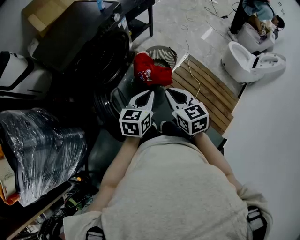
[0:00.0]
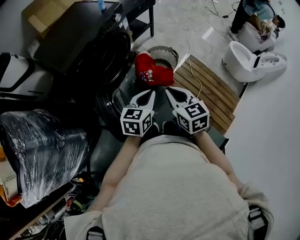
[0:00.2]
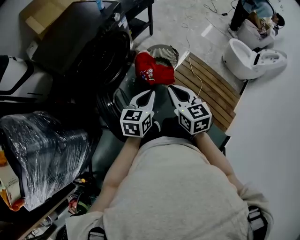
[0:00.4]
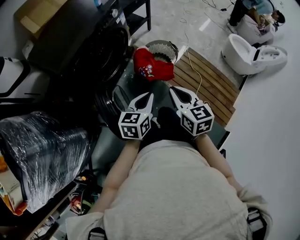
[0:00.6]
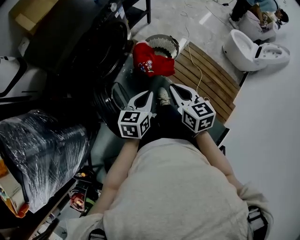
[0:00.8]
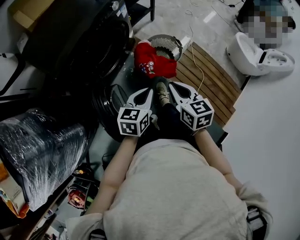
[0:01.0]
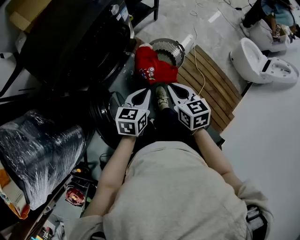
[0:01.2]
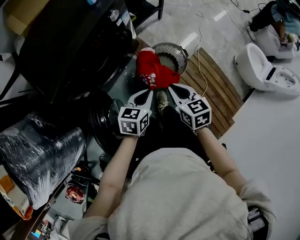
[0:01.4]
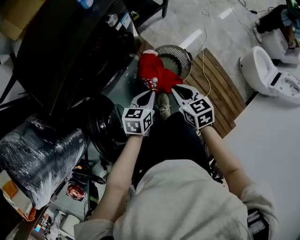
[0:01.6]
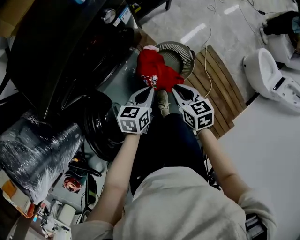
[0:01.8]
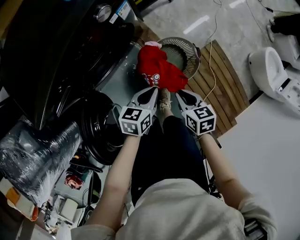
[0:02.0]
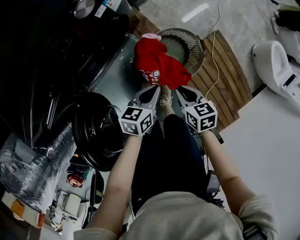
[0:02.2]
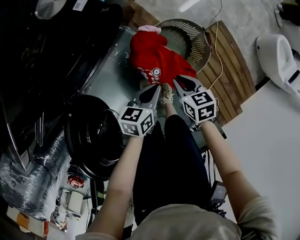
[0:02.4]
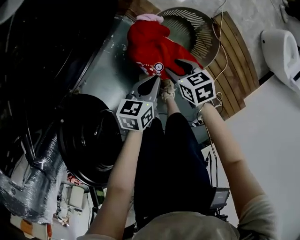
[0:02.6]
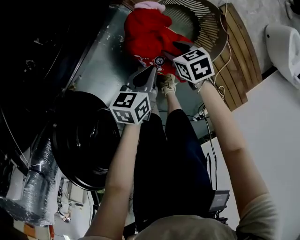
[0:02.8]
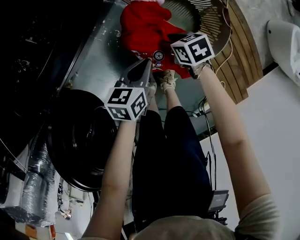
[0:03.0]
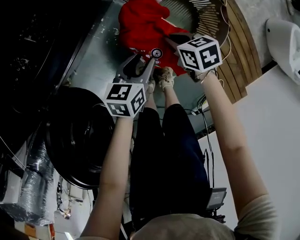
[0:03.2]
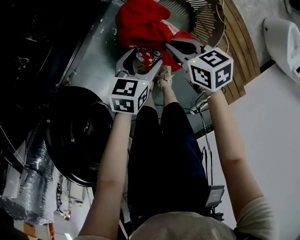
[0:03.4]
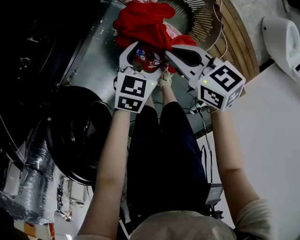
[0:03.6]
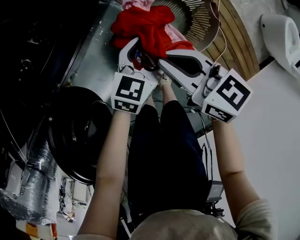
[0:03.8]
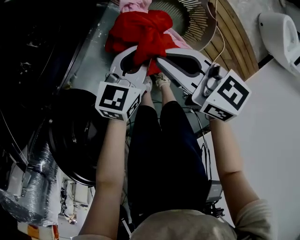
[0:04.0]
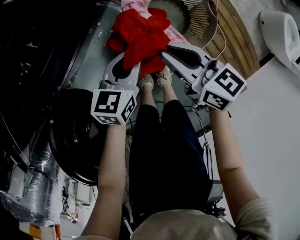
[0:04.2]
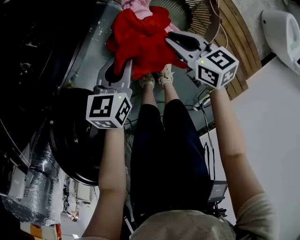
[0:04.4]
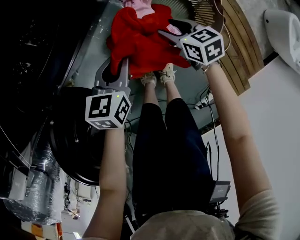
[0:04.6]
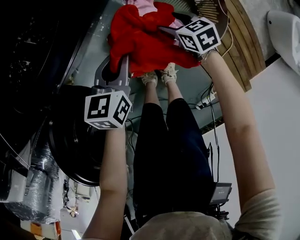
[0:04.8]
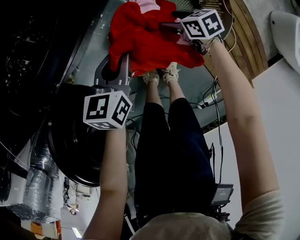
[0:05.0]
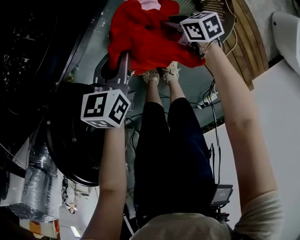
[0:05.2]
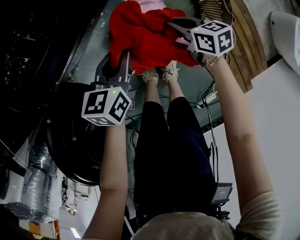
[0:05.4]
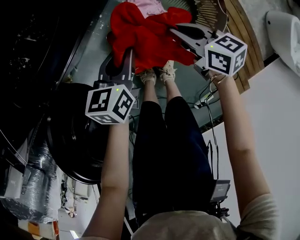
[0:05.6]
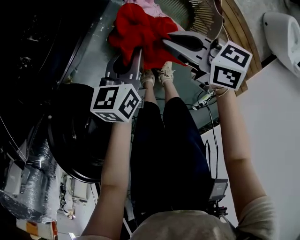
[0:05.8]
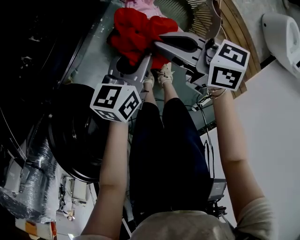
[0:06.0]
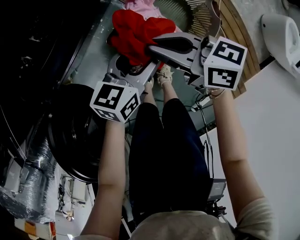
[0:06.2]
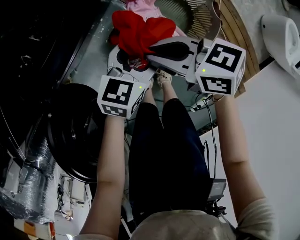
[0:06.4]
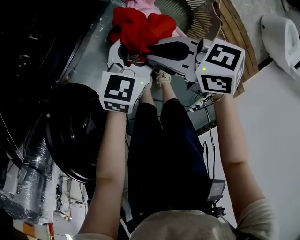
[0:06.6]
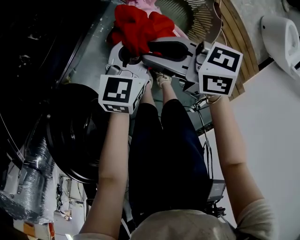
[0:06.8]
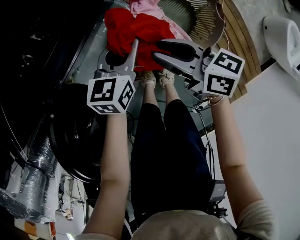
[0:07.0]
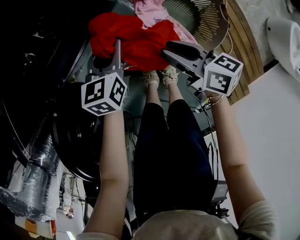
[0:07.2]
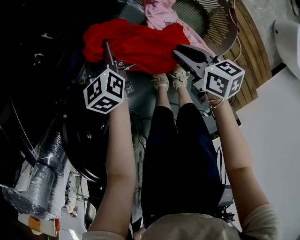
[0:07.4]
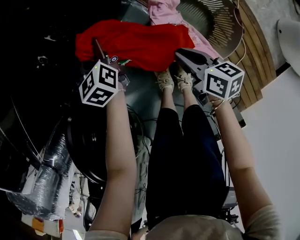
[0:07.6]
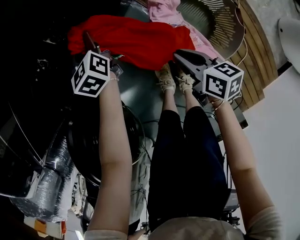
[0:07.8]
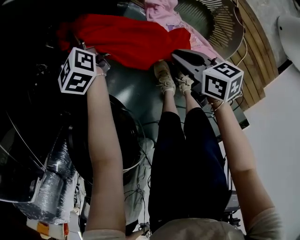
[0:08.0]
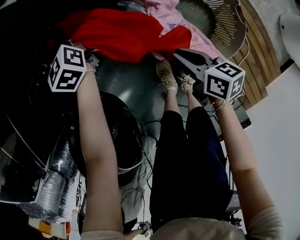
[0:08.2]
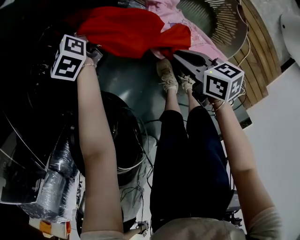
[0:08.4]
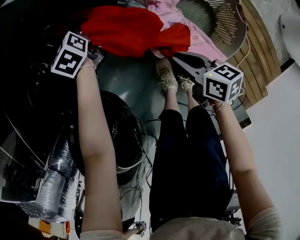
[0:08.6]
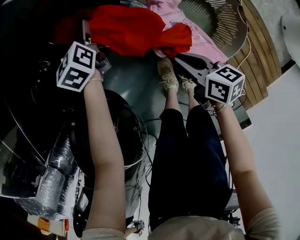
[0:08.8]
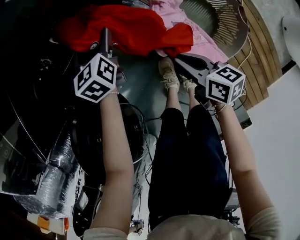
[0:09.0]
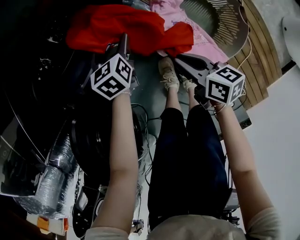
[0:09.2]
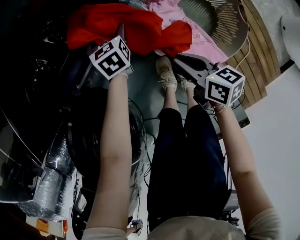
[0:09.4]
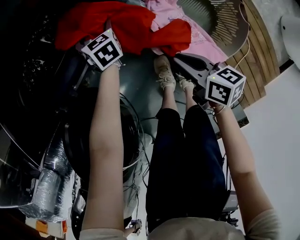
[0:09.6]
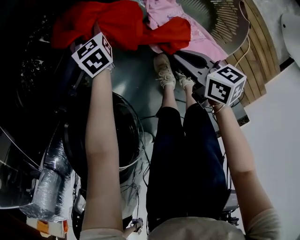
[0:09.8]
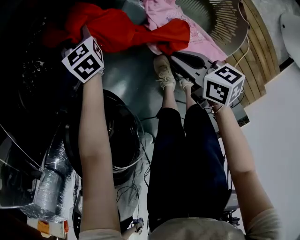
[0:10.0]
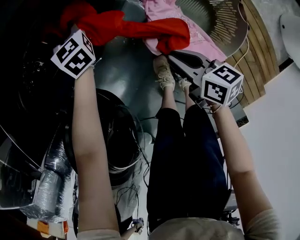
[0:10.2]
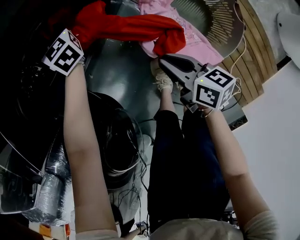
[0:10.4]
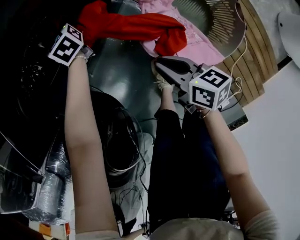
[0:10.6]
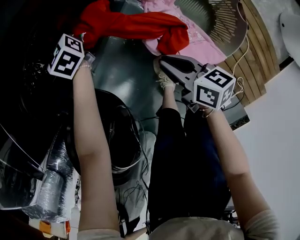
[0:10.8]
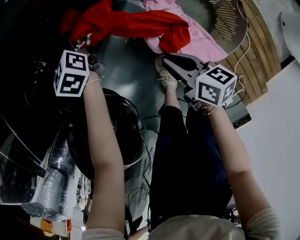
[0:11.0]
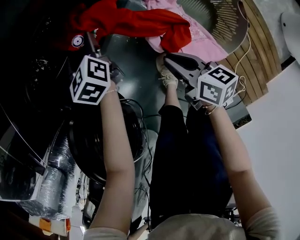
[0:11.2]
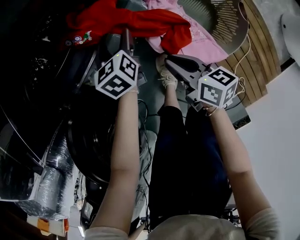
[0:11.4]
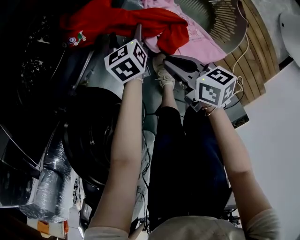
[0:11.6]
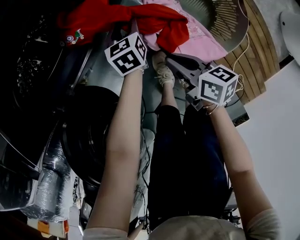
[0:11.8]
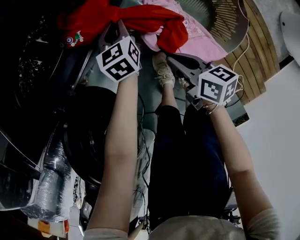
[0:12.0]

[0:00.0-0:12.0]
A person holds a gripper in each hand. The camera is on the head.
0:00.0 to 0:01.6: The grippers both shift forward and downward by roughly 30 cm. The left gripper turns by roughly 20 degrees. Meanwhile the right gripper swivels about 20 degrees.
0:01.6 to 0:03.0: Both grippers move downward, about 40 cm. The right gripper turns by roughly 30 degrees, and opens.
0:03.0 to 0:04.4: The right gripper moves upward, roughly 15 cm, swivels about 30 degrees, and closes, while the left gripper is displaced upward by some 10 cm, and opens, then closes once more.
0:04.4 to 0:06.0: The right gripper goes about 10 cm upward, rotates some 20 degrees, and opens, then closes once more.
0:06.0 to 0:07.6: The right gripper is displaced downward by roughly 10 cm, and swivels about 20 degrees; the left gripper moves approximately 25 cm, swivels some 50 degrees, and opens and closes again.
0:07.6 to 0:09.0: The left gripper travels forward and back again, roughly 15 cm each way, and opens up.
0:09.0 to 0:10.4: The left gripper goes approximately 15 cm forward, rotates about 30 degrees, and closes its fingers.
0:10.4 to 0:12.0: The left gripper moves backward, roughly 20 cm, turns by roughly 30 degrees, and opens, then closes once more.

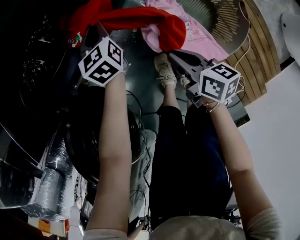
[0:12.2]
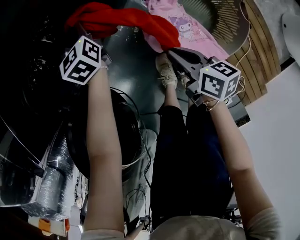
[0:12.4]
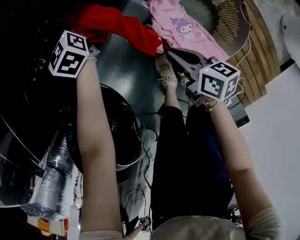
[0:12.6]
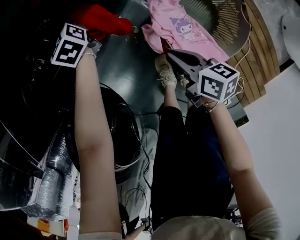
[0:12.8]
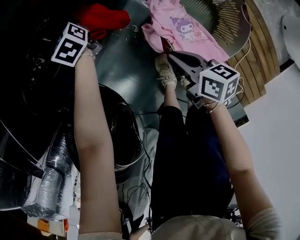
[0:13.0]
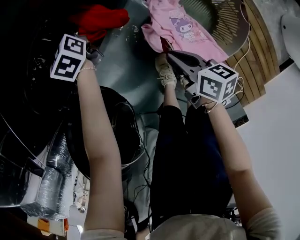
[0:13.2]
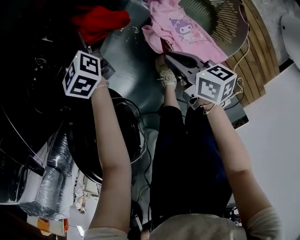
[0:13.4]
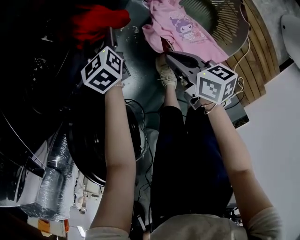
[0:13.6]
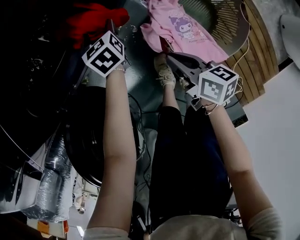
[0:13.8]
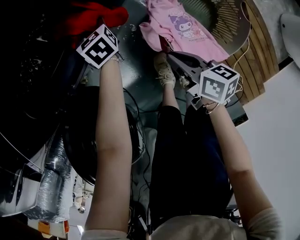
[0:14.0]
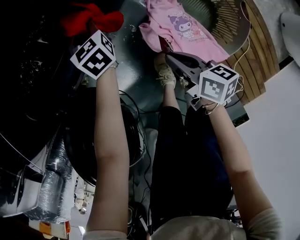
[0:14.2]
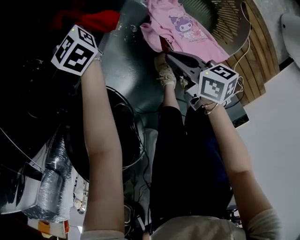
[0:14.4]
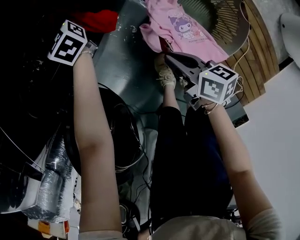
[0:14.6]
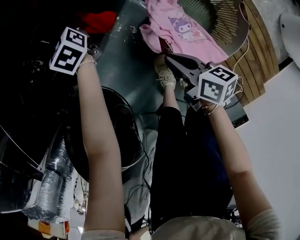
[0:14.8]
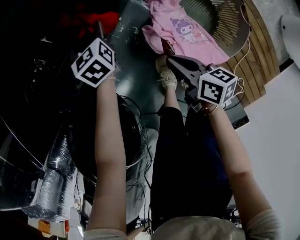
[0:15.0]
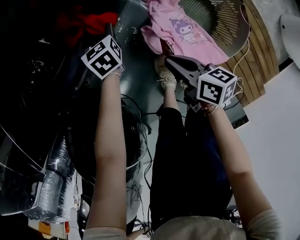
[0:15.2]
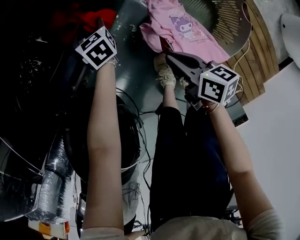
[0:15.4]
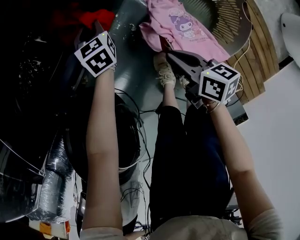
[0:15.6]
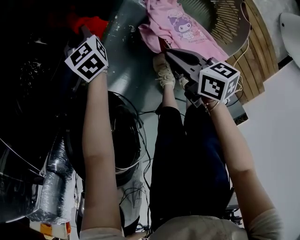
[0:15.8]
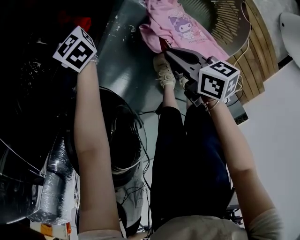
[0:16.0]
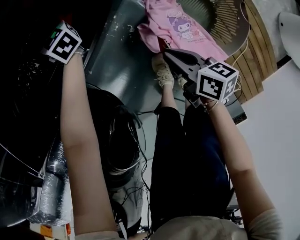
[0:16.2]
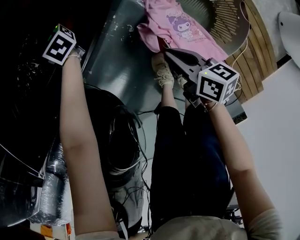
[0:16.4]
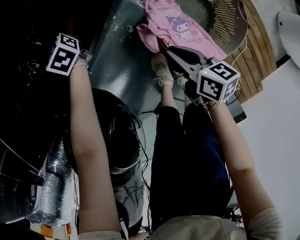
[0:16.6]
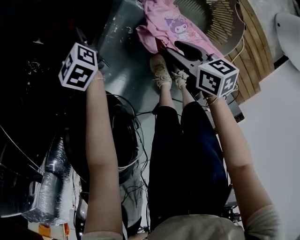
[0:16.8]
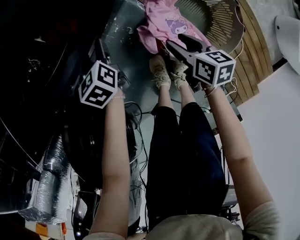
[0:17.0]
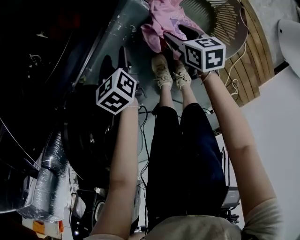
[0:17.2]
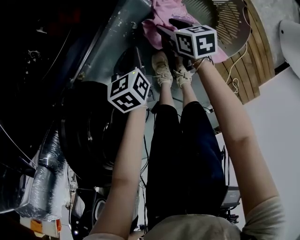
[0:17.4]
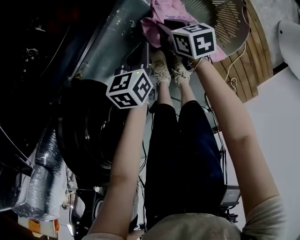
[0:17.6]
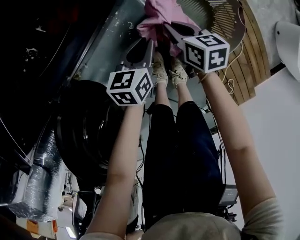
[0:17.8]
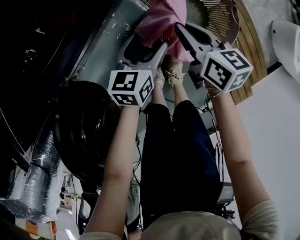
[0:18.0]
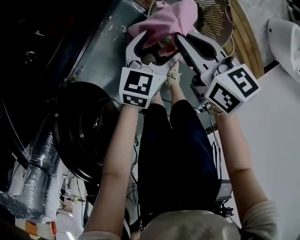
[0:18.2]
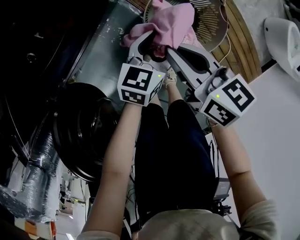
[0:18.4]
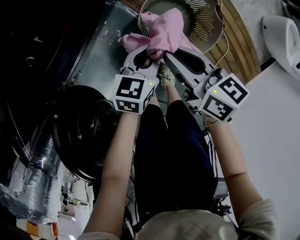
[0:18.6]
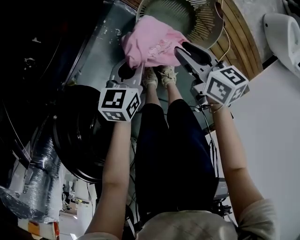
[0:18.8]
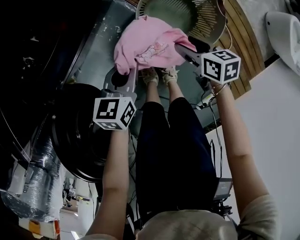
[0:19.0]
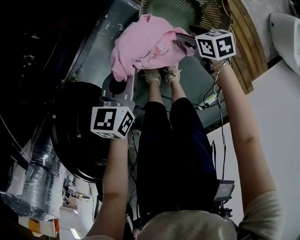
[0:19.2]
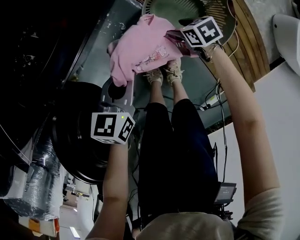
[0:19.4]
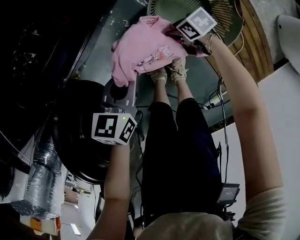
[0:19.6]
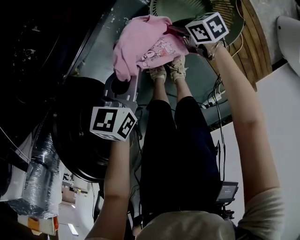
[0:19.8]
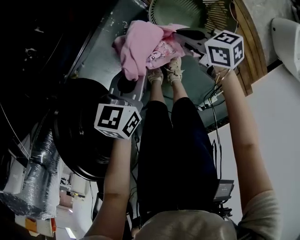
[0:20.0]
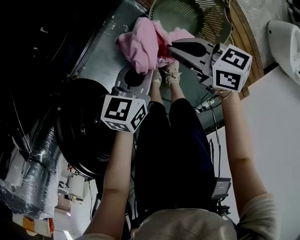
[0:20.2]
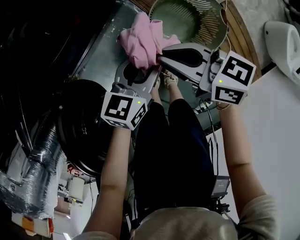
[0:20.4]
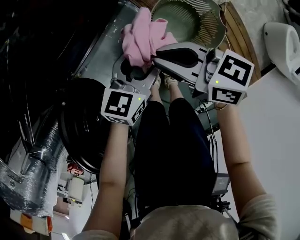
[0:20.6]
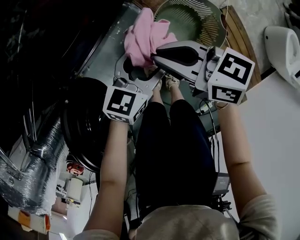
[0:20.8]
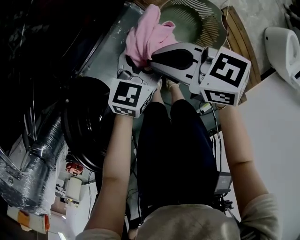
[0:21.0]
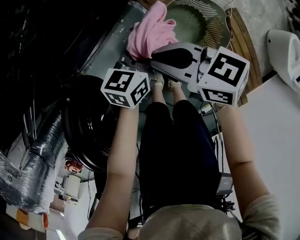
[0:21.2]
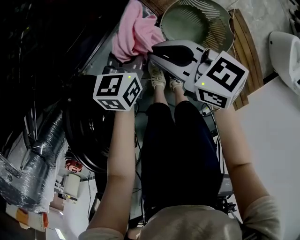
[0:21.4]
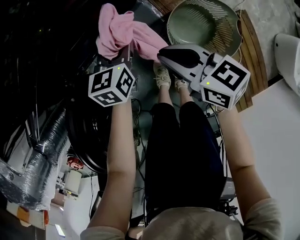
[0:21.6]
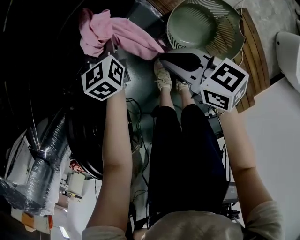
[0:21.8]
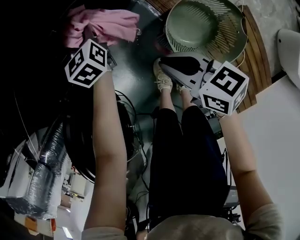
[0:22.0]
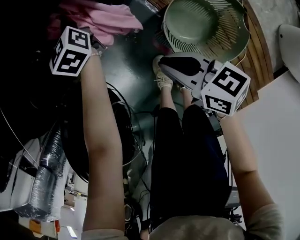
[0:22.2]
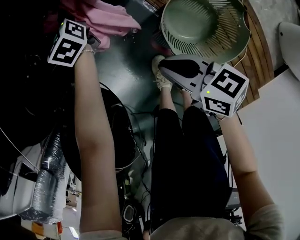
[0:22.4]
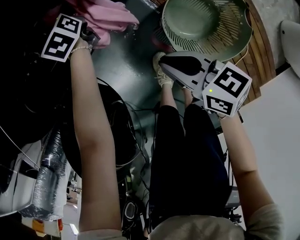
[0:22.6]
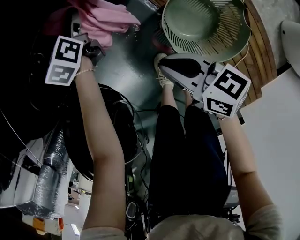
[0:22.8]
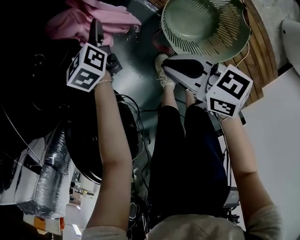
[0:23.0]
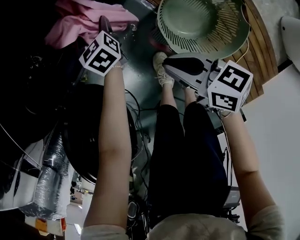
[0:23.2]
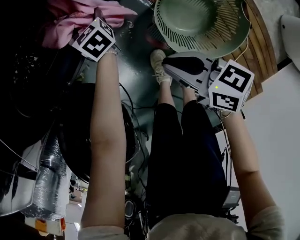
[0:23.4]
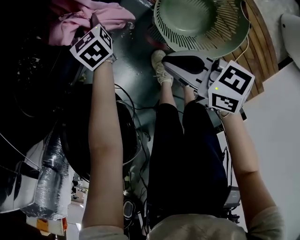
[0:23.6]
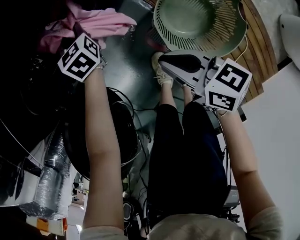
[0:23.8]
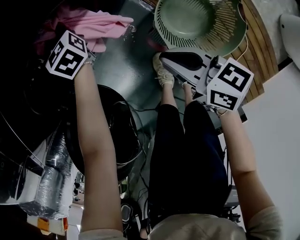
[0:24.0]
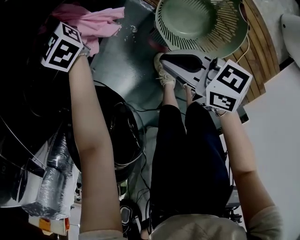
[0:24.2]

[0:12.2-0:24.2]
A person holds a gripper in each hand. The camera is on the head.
0:12.2 to 0:13.8: The left gripper goes forward and returns, some 15 cm each way, and opens up.
0:13.8 to 0:15.2: The left gripper goes forward and returns, about 15 cm each way, and closes, then reopens.
0:15.2 to 0:16.6: The left gripper goes roughly 15 cm forward and upward, turns by about 20 degrees, and closes, then opens again.
0:16.6 to 0:18.2: The right gripper is displaced upward by about 15 cm, and opens, then closes once more. The left gripper shifts by approximately 40 cm, swivels about 70 degrees, and closes and opens again.
0:18.2 to 0:19.8: The right gripper heads downward, covering about 25 cm, changes its angle by about 40 degrees, and opens, then closes once more; the left gripper changes place by approximately 10 cm, swivels about 20 degrees, and closes its fingers.
0:19.8 to 0:21.2: The right gripper goes approximately 30 cm upward, and turns by some 30 degrees, while the left gripper moves about 10 cm, and opens, then closes again.
0:21.2 to 0:22.6: The left gripper changes place by roughly 35 cm, and changes its angle by approximately 50 degrees. Meanwhile the right gripper heads downward, covering some 10 cm.
0:22.6 to 0:24.2: The left gripper is displaced upward by about 5 cm, turns by about 20 degrees, and closes up.
